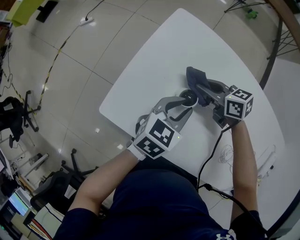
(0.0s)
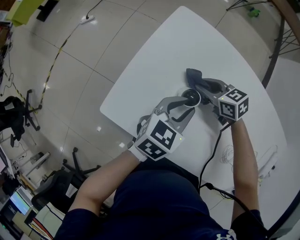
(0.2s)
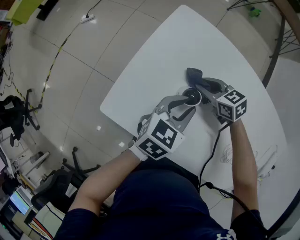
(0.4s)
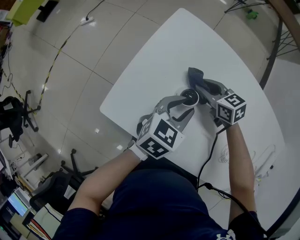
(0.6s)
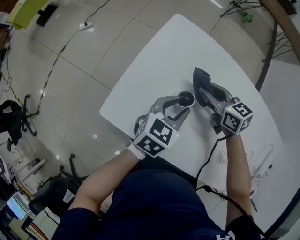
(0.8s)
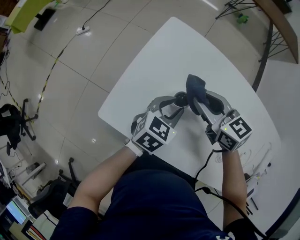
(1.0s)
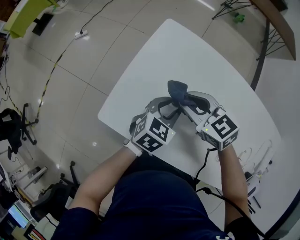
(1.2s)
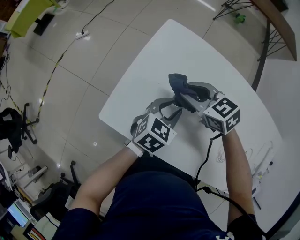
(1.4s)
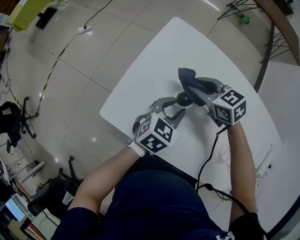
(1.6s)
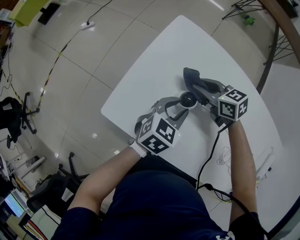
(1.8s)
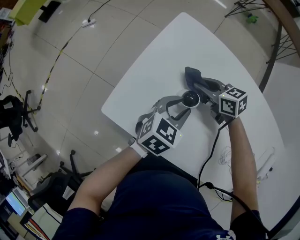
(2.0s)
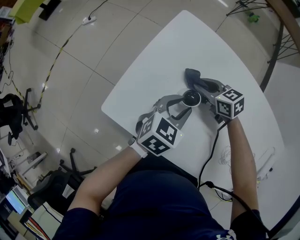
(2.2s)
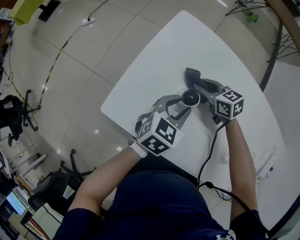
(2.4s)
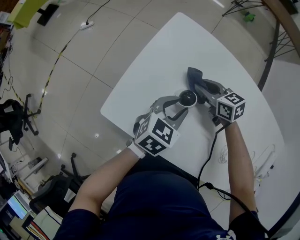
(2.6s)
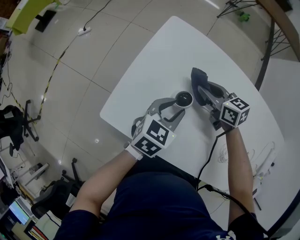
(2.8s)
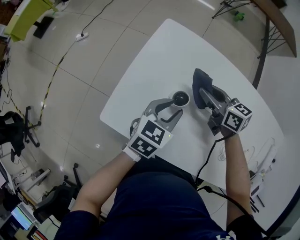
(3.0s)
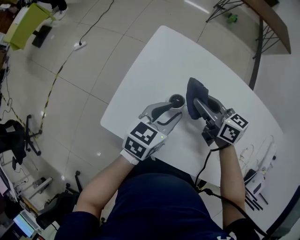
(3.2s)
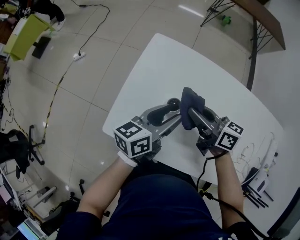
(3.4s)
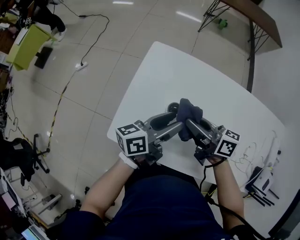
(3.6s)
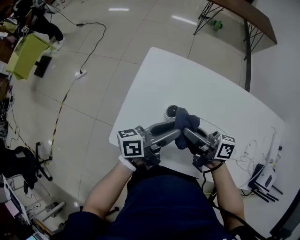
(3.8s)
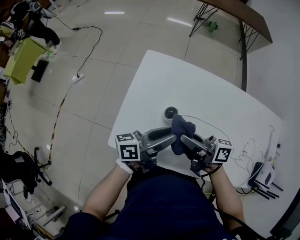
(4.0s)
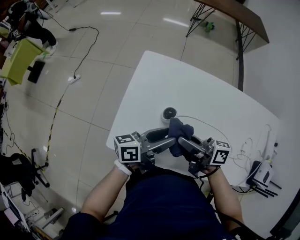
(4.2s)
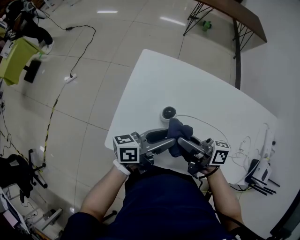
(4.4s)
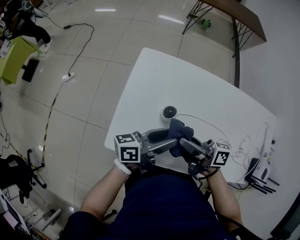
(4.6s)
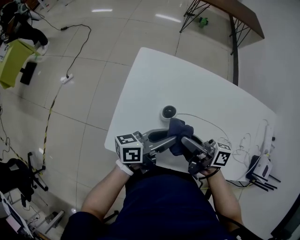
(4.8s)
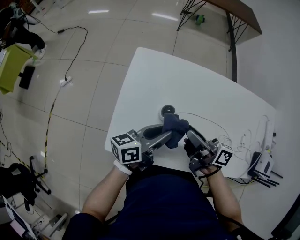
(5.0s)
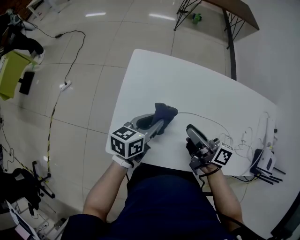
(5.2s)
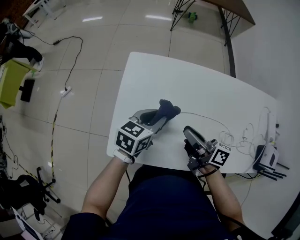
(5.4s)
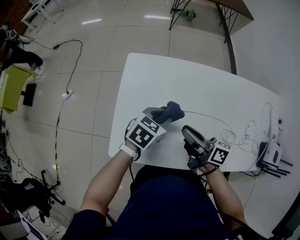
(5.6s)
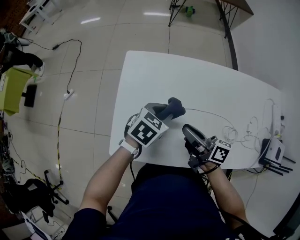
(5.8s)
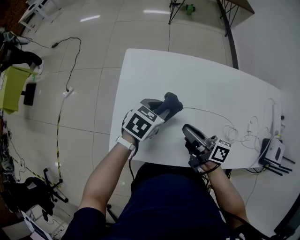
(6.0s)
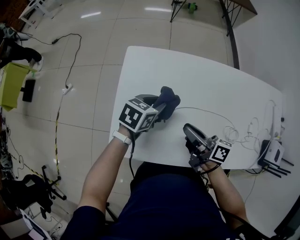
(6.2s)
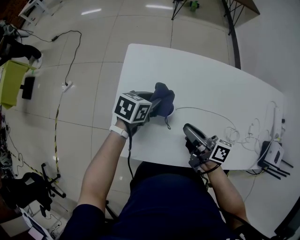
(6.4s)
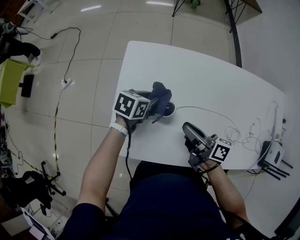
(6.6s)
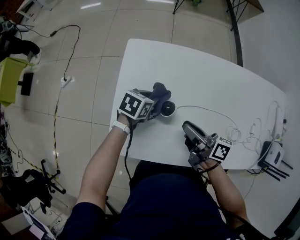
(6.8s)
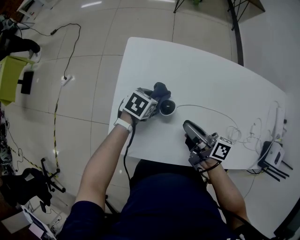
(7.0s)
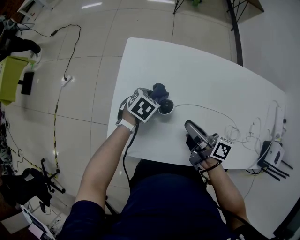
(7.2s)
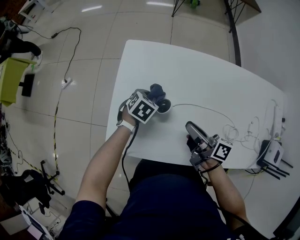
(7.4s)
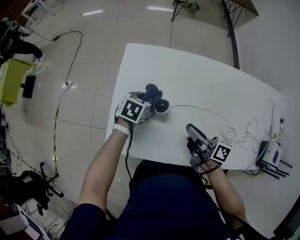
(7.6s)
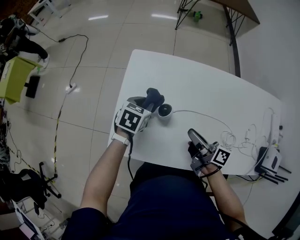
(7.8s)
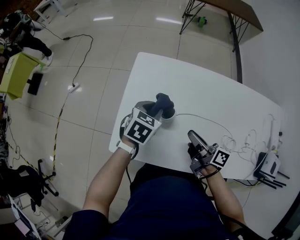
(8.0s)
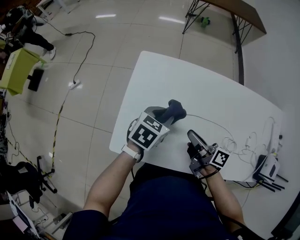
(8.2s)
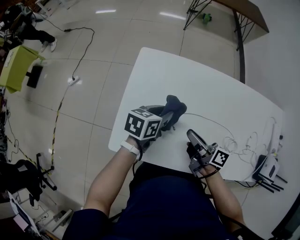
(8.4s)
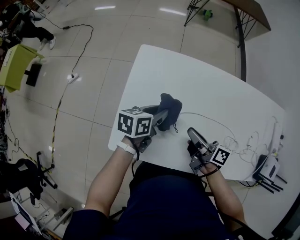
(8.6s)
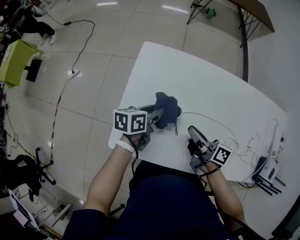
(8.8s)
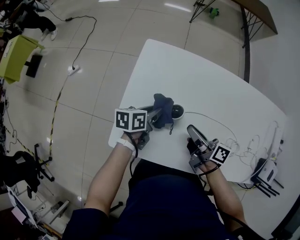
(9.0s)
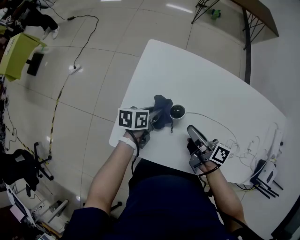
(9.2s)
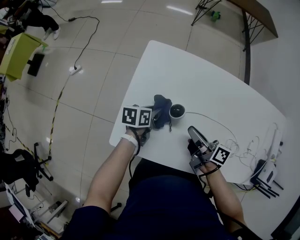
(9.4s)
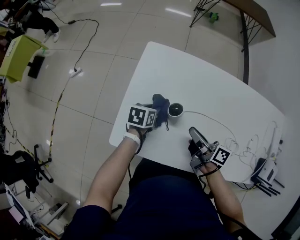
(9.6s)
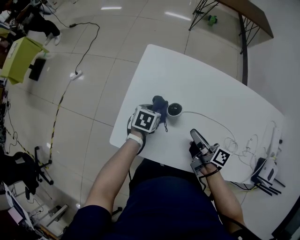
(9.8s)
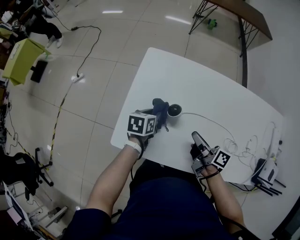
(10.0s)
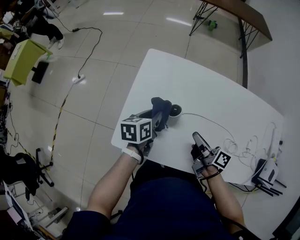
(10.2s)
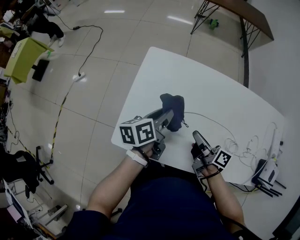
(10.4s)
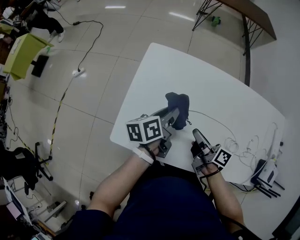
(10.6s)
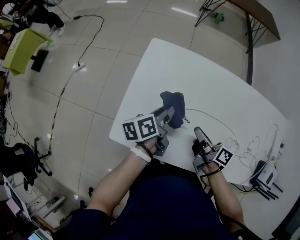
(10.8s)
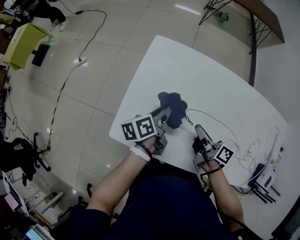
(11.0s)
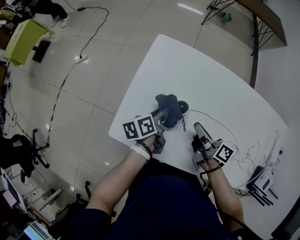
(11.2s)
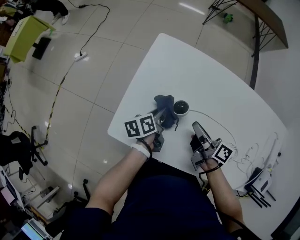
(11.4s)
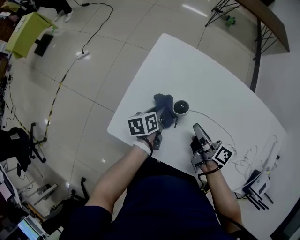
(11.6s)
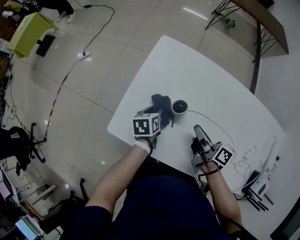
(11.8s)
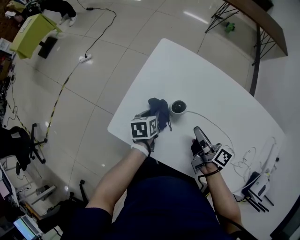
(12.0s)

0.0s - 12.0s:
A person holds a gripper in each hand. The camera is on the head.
0.0s - 1.6s: The right gripper moves up and down over approximately 15 cm, changing direction 2 times.
1.6s - 3.0s: The right gripper moves to the right, roughly 5 cm, reaches some 10 cm downward, then returns, and changes its angle by roughly 30 degrees.
3.0s - 4.4s: The left gripper shifts approximately 10 cm upward and backward, and tilts its fingers roughly 40 degrees upward, while the right gripper heads backward and upward, covering approximately 15 cm, and changes its angle by approximately 40 degrees.
4.4s - 6.0s: The right gripper travels downward and to the right by some 10 cm, and turns by approximately 20 degrees. The left gripper goes some 15 cm downward and forward, points its fingers roughly 50 degrees further downward, and closes its fingers.
6.0s - 7.6s: The left gripper travels to the left and downward by approximately 10 cm.
7.6s - 9.0s: The left gripper travels upward and back again, about 10 cm each way, and swivels roughly 40 degrees.
9.0s - 10.4s: The left gripper goes about 10 cm upward.
10.4s - 12.0s: The left gripper heads downward and to the left, covering some 15 cm, and changes its angle by some 30 degrees.

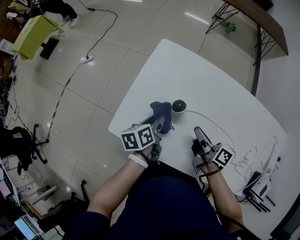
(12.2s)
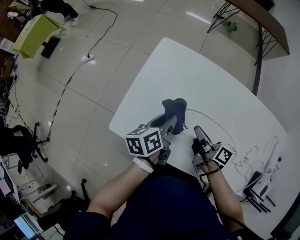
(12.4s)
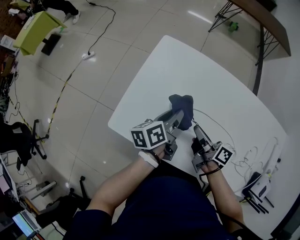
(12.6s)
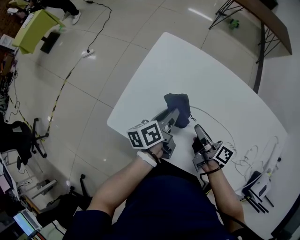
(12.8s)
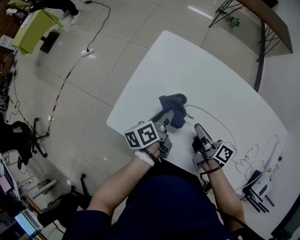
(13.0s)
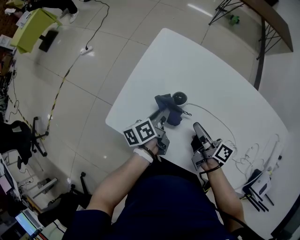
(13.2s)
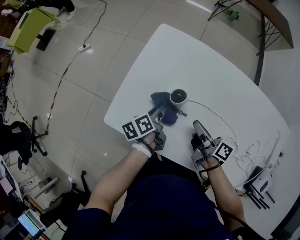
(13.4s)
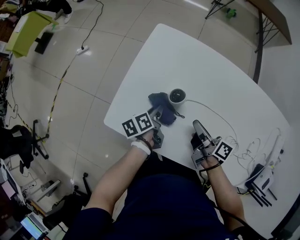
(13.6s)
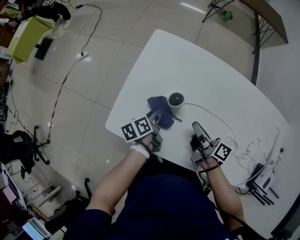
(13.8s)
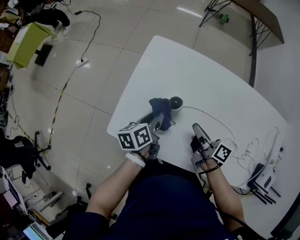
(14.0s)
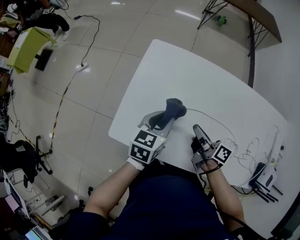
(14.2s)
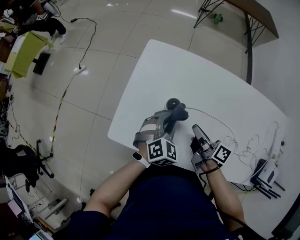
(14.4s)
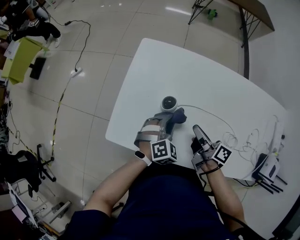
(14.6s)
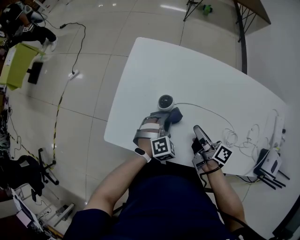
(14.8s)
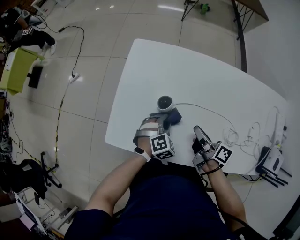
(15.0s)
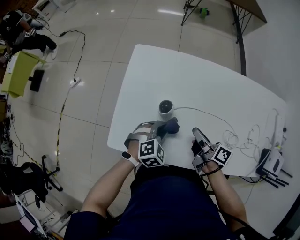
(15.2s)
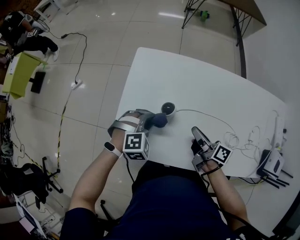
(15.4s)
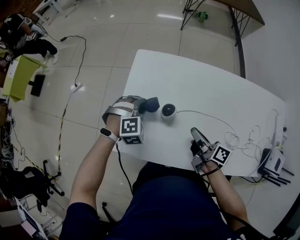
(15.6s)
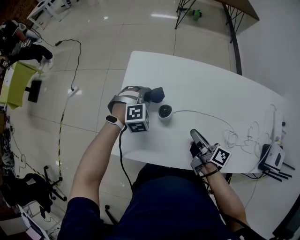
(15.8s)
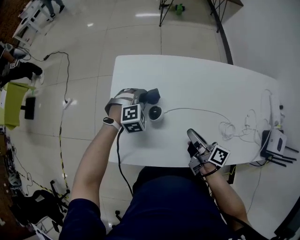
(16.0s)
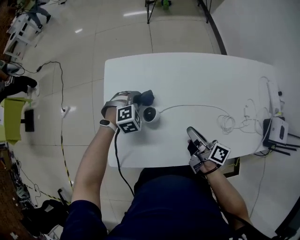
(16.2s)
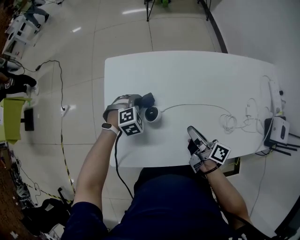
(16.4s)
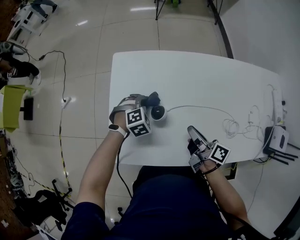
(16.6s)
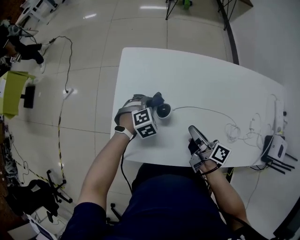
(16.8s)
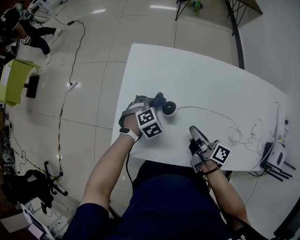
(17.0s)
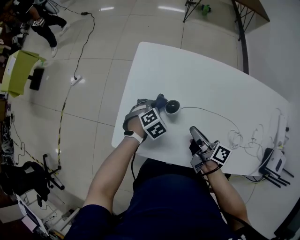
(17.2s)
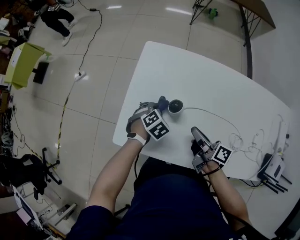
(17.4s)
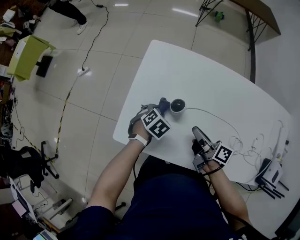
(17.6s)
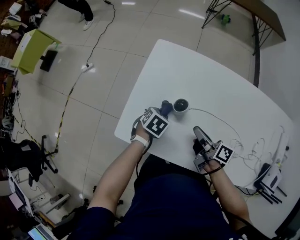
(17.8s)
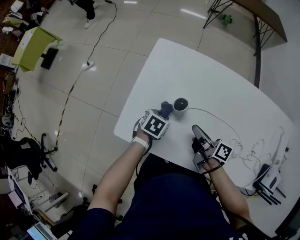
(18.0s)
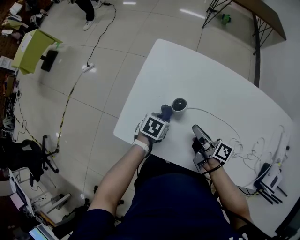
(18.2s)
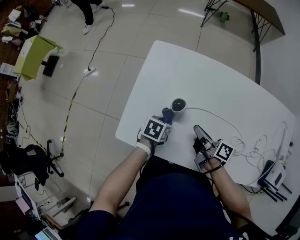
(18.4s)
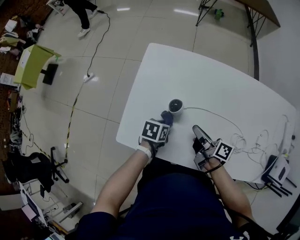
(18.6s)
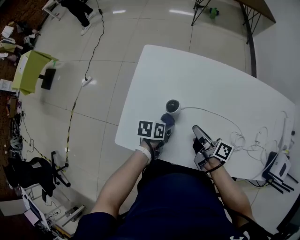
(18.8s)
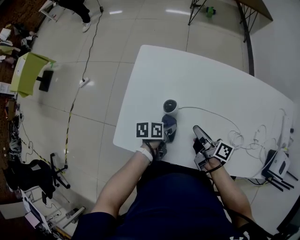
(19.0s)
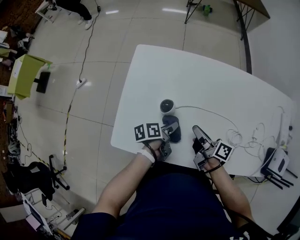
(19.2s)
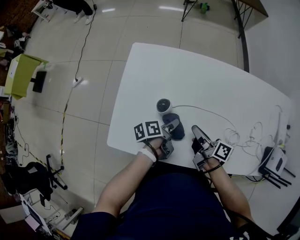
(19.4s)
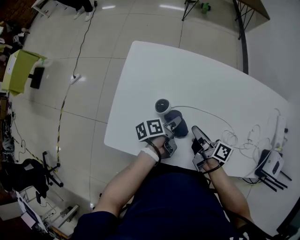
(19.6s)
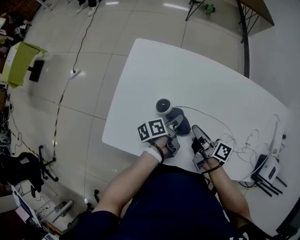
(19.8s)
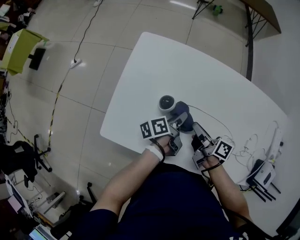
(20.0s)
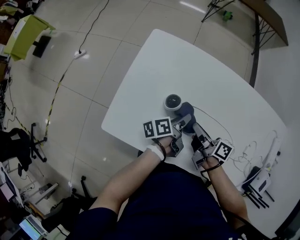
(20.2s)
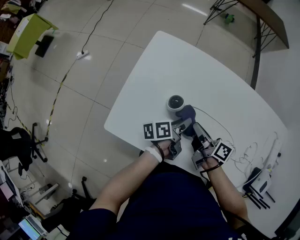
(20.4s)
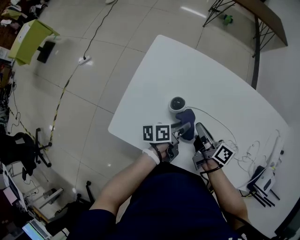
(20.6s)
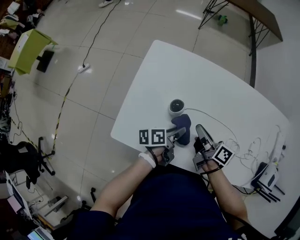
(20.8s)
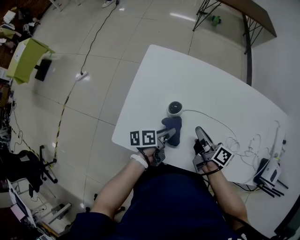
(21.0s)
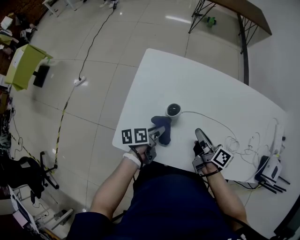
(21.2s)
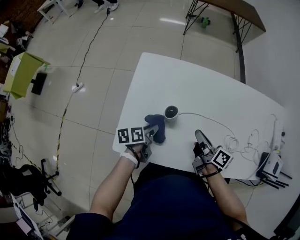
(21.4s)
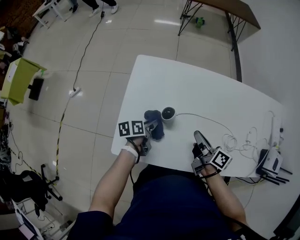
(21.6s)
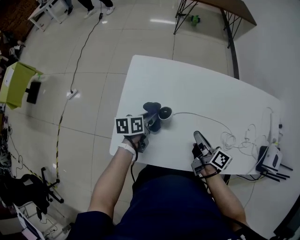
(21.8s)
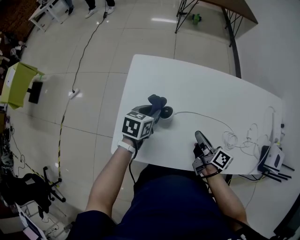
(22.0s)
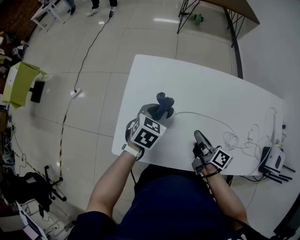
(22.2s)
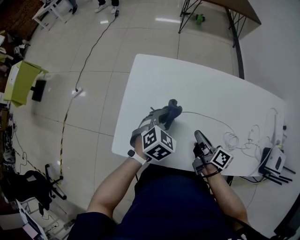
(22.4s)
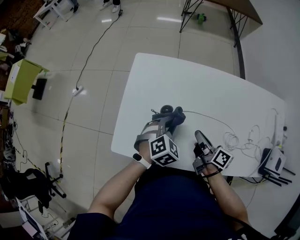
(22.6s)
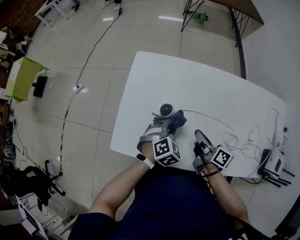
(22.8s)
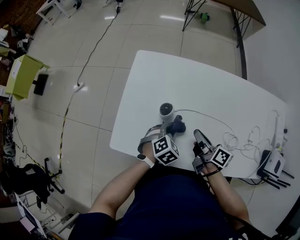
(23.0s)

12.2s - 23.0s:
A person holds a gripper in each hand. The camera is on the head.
12.2s - 13.8s: The left gripper moves downward, roughly 5 cm.
13.8s - 15.2s: The left gripper moves up and down over approximately 15 cm, changing direction 2 times, and rotates around the line of its fingers by some 110 degrees, clockwise from behind.
15.2s - 16.8s: The left gripper shifts about 15 cm forward, to the left and downward.
16.8s - 18.4s: The left gripper heads backward, covering about 10 cm, and rolls counterclockwise, seen from behind, by about 70 degrees.
18.4s - 20.0s: The right gripper heads to the right, covering approximately 5 cm, while the left gripper heads to the right and forward, covering approximately 15 cm, and tilts its fingers approximately 40 degrees upward.
20.0s - 21.4s: The right gripper ends up approximately 5 cm from where it was, while the left gripper moves to the left, about 15 cm, and rotates roughly 30 degrees.
21.4s - 23.0s: The left gripper heads to the right, covering approximately 10 cm, and rotates around the line of its fingers by some 80 degrees, clockwise from behind.

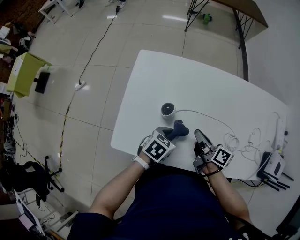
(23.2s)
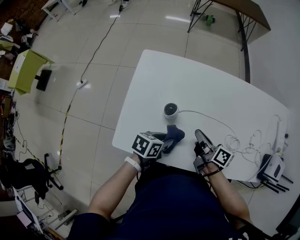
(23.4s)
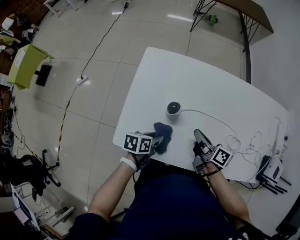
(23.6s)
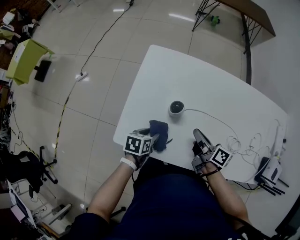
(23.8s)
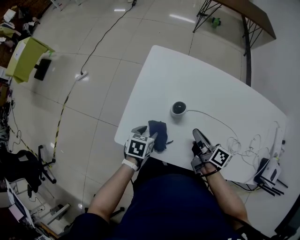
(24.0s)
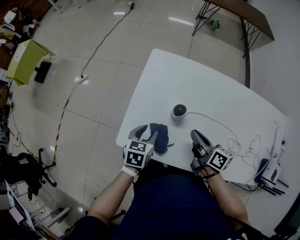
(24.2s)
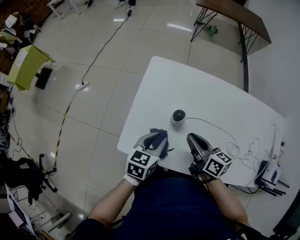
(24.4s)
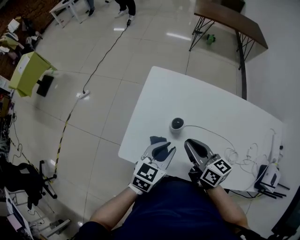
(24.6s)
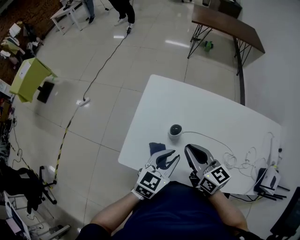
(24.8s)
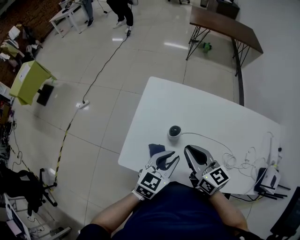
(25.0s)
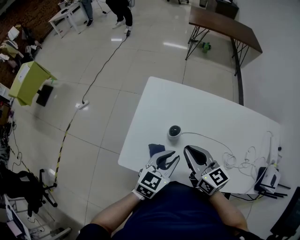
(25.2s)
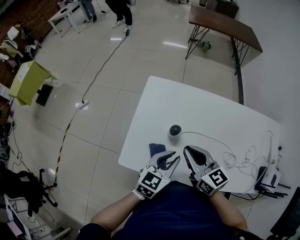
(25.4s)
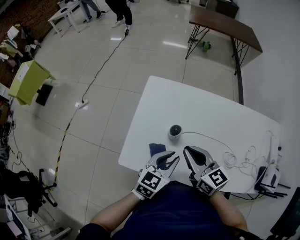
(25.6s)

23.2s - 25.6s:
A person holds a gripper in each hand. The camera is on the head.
23.2s - 24.4s: The right gripper moves approximately 10 cm, and swivels some 20 degrees, while the left gripper changes place by roughly 15 cm, rotates about 30 degrees, and opens, then closes once more.
24.4s - 25.6s: The left gripper shifts some 5 cm to the right. Meanwhile the right gripper goes roughly 10 cm upward, and rotates about 30 degrees.
